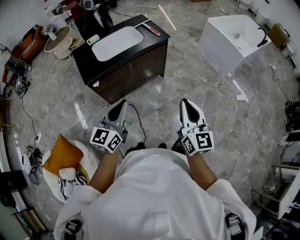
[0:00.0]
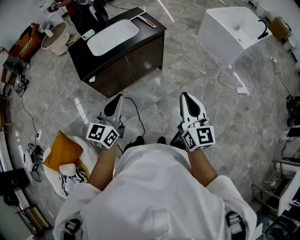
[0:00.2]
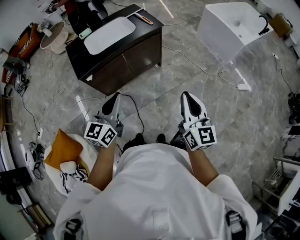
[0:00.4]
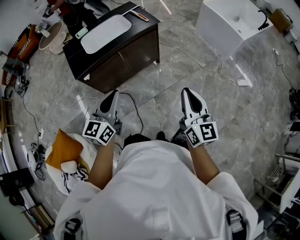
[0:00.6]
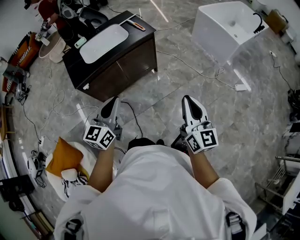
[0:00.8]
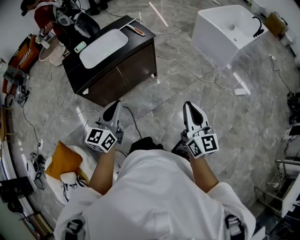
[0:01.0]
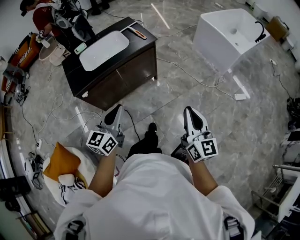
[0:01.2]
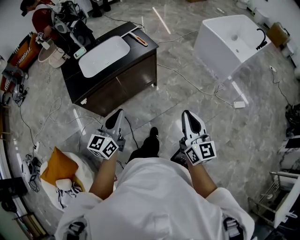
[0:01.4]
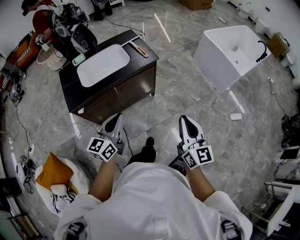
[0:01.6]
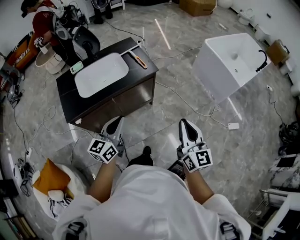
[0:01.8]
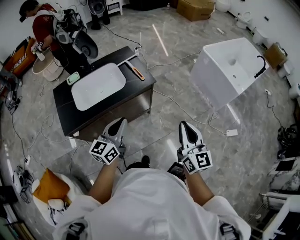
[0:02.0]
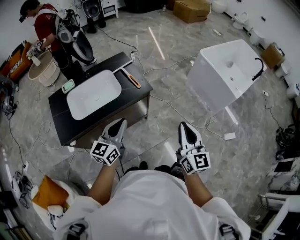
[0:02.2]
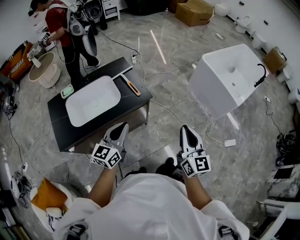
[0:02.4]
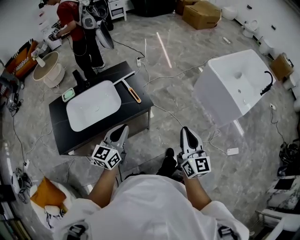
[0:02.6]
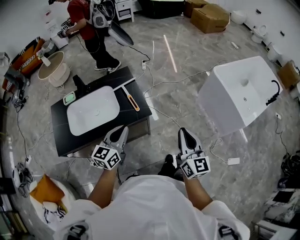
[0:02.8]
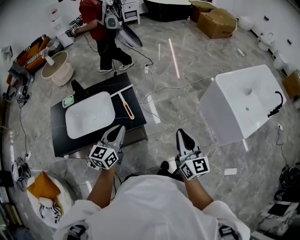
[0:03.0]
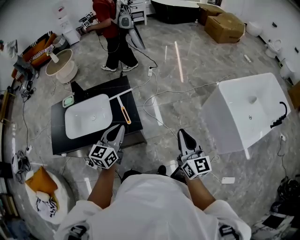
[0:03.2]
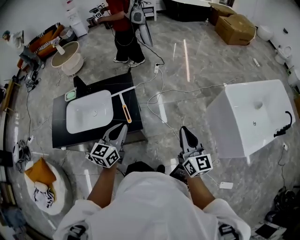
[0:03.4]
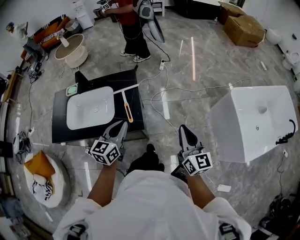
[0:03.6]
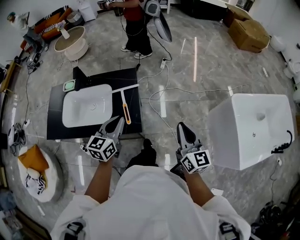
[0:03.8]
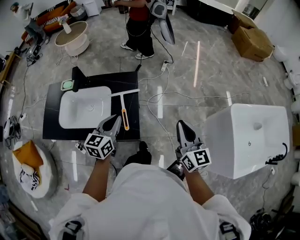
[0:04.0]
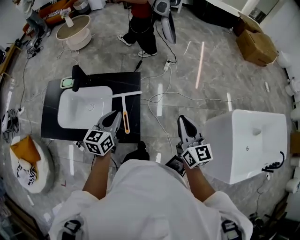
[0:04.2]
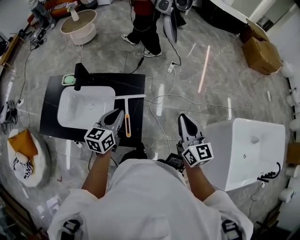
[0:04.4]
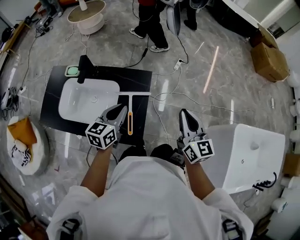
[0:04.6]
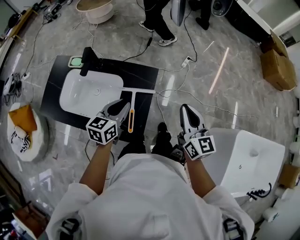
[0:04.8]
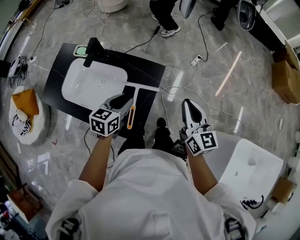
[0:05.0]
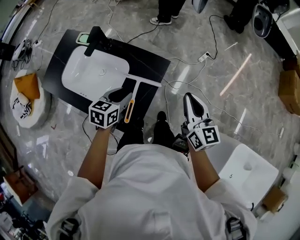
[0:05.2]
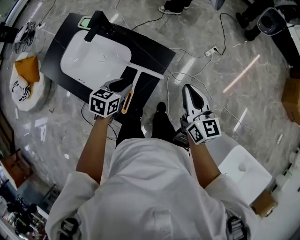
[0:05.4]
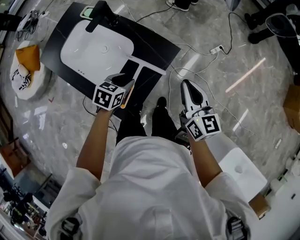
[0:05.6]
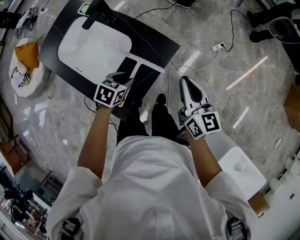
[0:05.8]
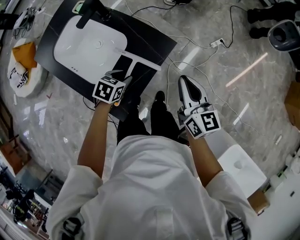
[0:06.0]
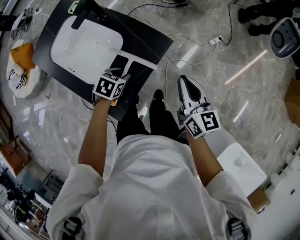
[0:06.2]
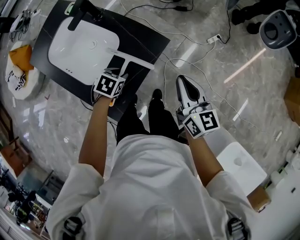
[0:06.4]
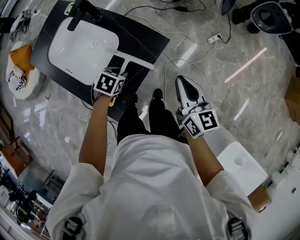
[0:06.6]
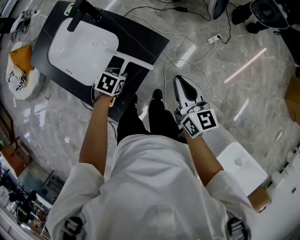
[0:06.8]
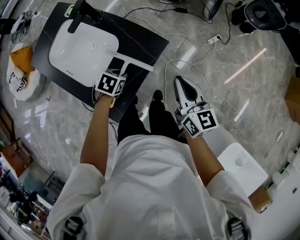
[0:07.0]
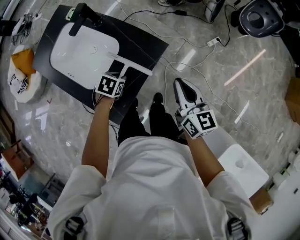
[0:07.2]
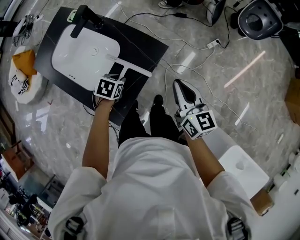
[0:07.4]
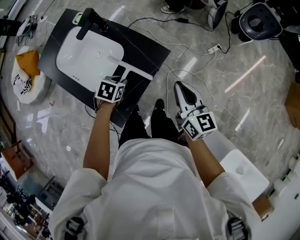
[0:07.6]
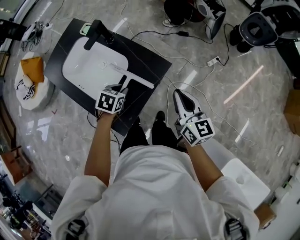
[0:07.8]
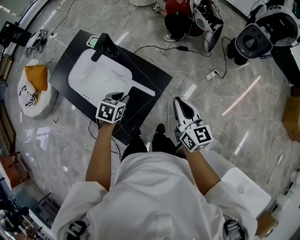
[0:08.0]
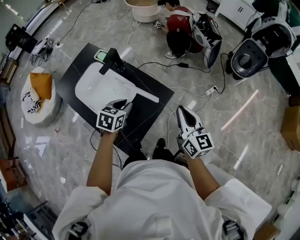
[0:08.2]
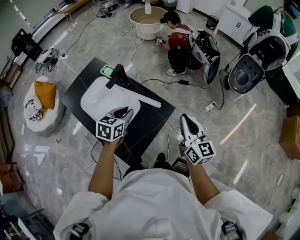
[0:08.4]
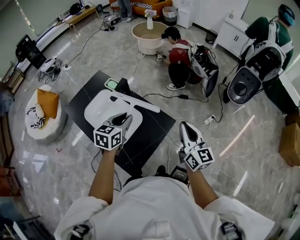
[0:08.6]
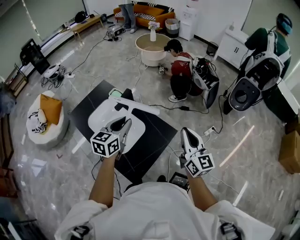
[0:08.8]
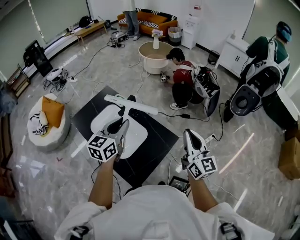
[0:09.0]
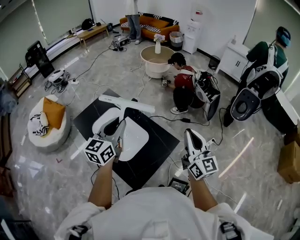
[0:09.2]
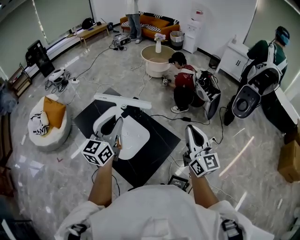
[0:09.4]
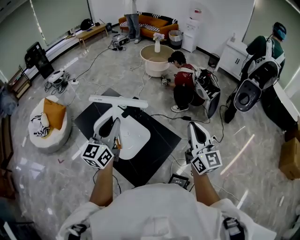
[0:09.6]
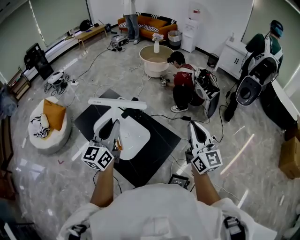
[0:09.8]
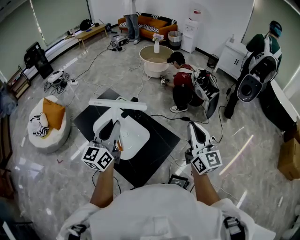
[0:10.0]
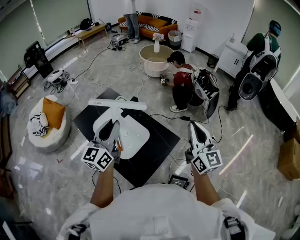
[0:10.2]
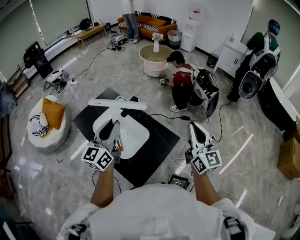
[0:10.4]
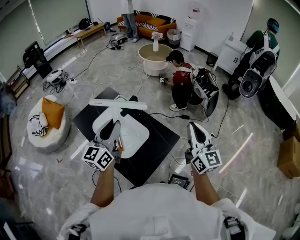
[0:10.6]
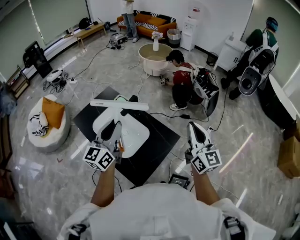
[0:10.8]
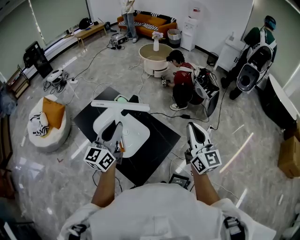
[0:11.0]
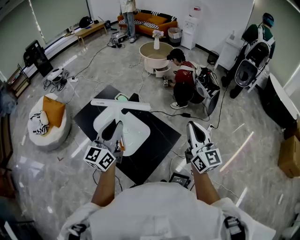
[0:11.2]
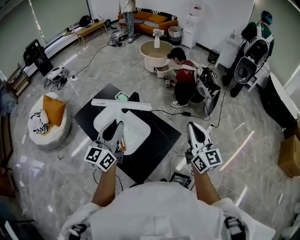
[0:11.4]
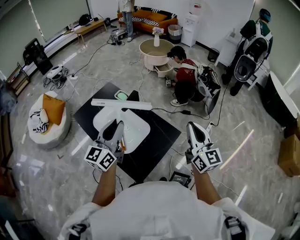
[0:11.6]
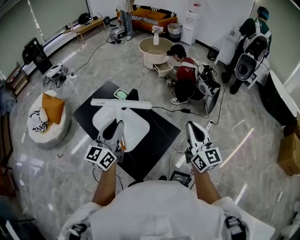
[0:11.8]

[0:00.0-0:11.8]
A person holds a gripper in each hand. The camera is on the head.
0:00.0 to 0:01.4: The grippers both shift forward and to the right by roughly 15 cm.
0:01.4 to 0:03.0: The pair of grippers is taken forward, some 50 cm.
0:03.0 to 0:04.4: Both grippers travel together forward, roughly 30 cm. The right gripper turns by approximately 30 degrees. Meanwhile the left gripper turns by about 20 degrees.
0:04.4 to 0:06.0: The right gripper shifts approximately 25 cm forward and downward, and turns by about 40 degrees, while the left gripper moves downward, approximately 20 cm, points its fingers about 40 degrees further downward, and opens.
0:06.0 to 0:07.4: The grippers stay close to where they were, moving slightly.
0:07.4 to 0:08.8: The left gripper heads upward, covering roughly 30 cm, and tilts its fingers approximately 50 degrees upward, while the right gripper moves upward, some 20 cm, and swivels some 20 degrees.
0:08.8 to 0:10.4: The right gripper travels upward by approximately 10 cm. The left gripper travels upward and to the left by approximately 15 cm, and rotates approximately 30 degrees.
0:10.4 to 0:11.8: The grippers stay close to where they were, moving slightly.

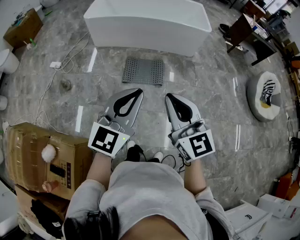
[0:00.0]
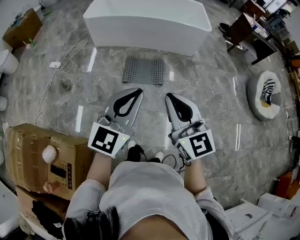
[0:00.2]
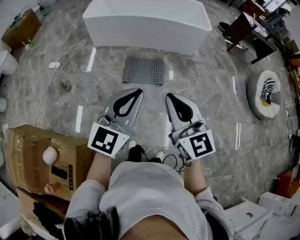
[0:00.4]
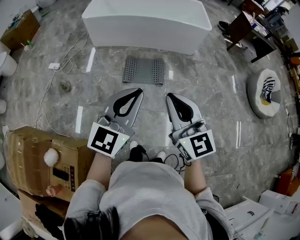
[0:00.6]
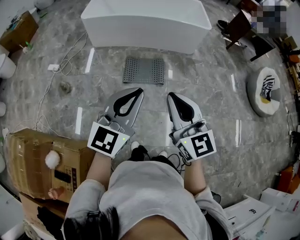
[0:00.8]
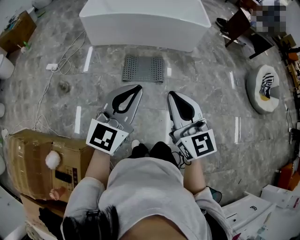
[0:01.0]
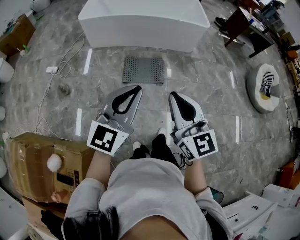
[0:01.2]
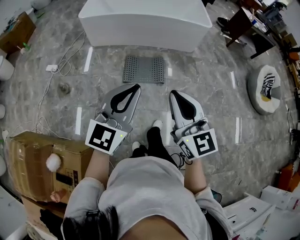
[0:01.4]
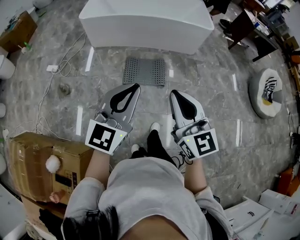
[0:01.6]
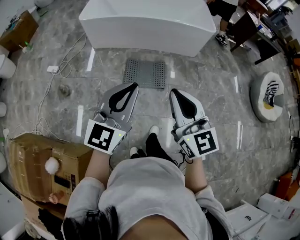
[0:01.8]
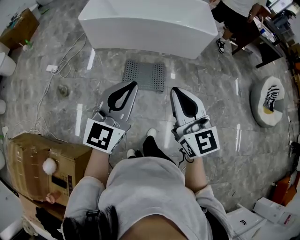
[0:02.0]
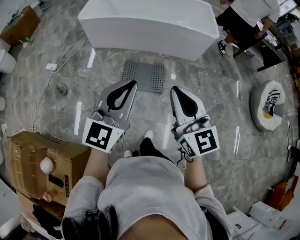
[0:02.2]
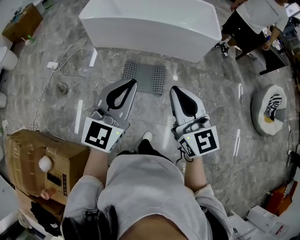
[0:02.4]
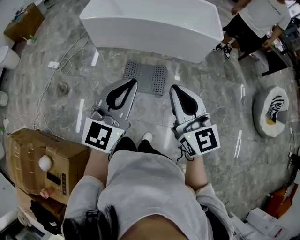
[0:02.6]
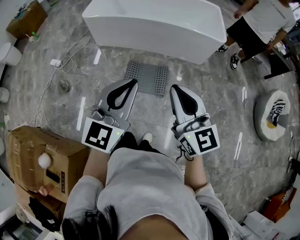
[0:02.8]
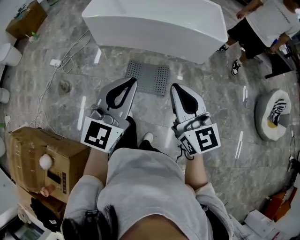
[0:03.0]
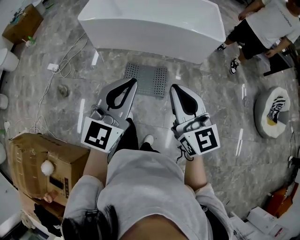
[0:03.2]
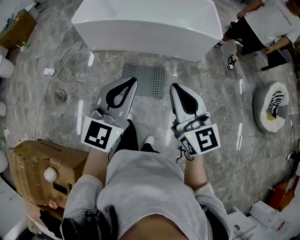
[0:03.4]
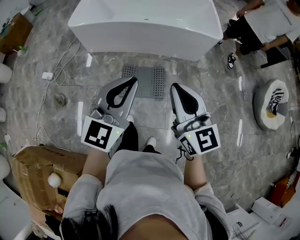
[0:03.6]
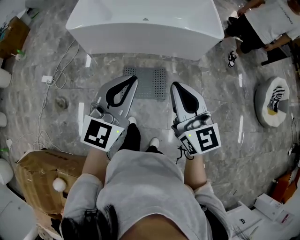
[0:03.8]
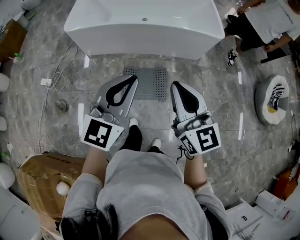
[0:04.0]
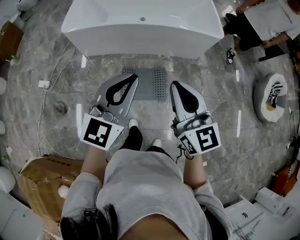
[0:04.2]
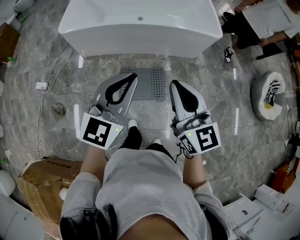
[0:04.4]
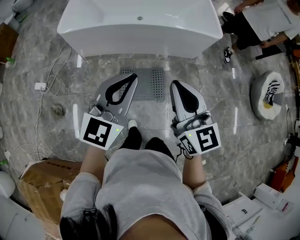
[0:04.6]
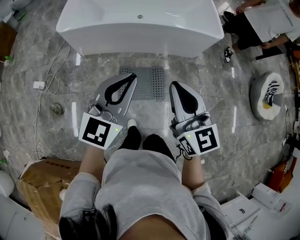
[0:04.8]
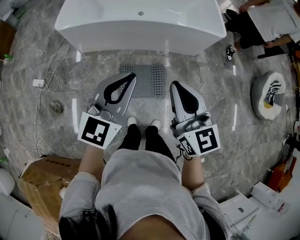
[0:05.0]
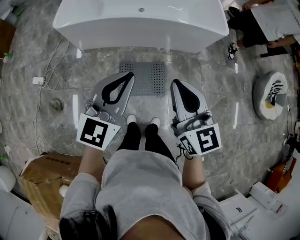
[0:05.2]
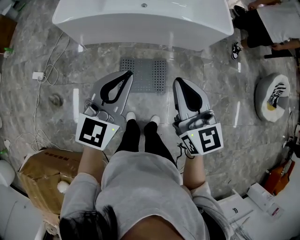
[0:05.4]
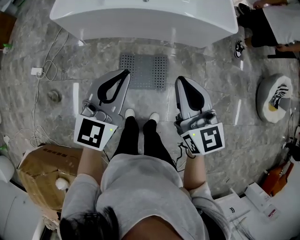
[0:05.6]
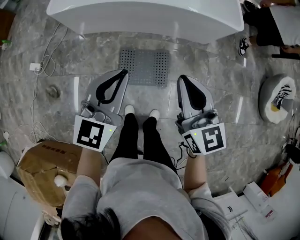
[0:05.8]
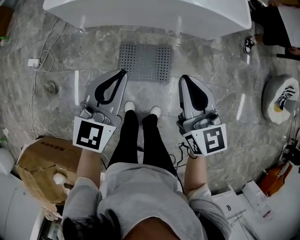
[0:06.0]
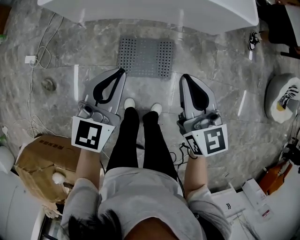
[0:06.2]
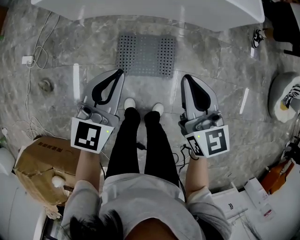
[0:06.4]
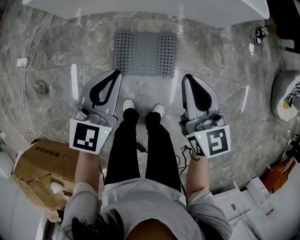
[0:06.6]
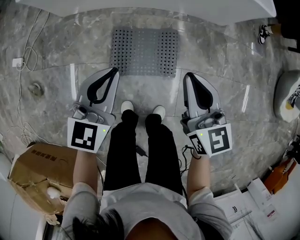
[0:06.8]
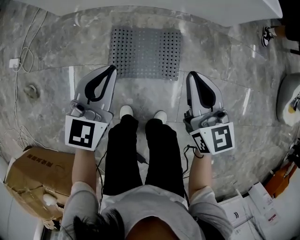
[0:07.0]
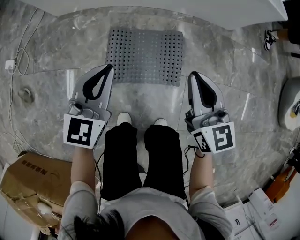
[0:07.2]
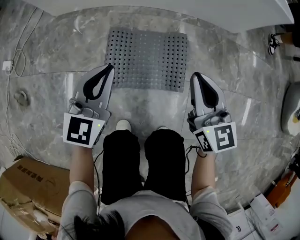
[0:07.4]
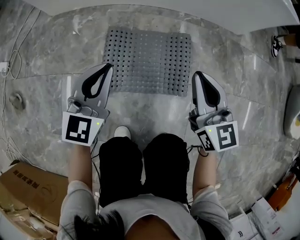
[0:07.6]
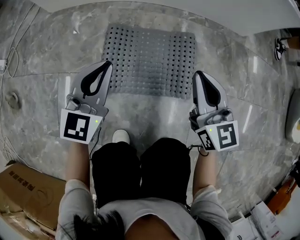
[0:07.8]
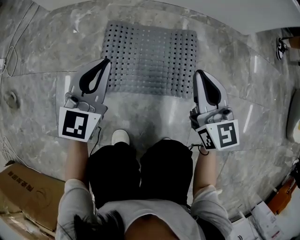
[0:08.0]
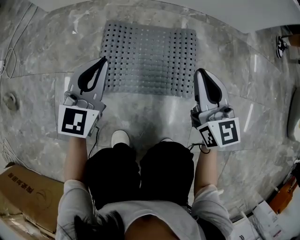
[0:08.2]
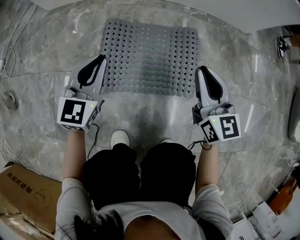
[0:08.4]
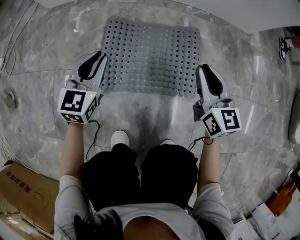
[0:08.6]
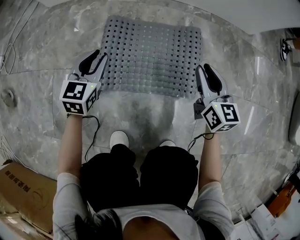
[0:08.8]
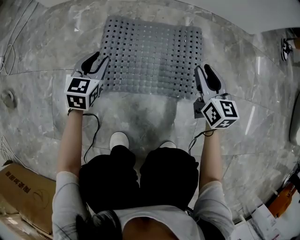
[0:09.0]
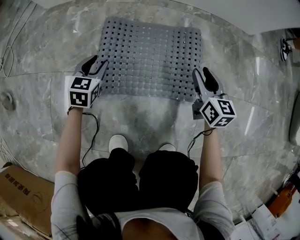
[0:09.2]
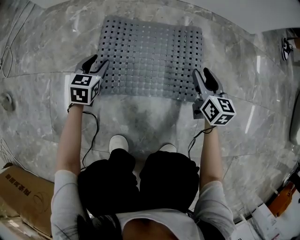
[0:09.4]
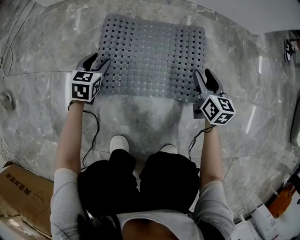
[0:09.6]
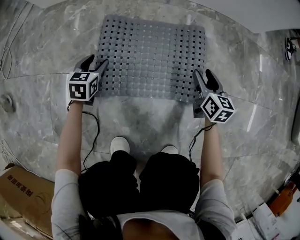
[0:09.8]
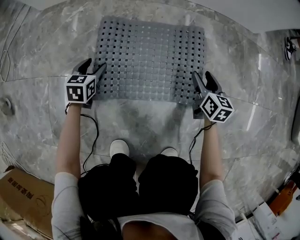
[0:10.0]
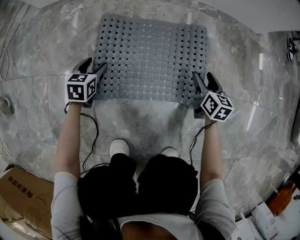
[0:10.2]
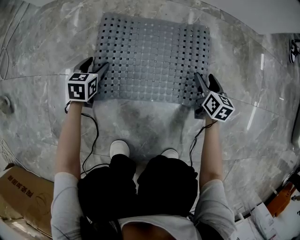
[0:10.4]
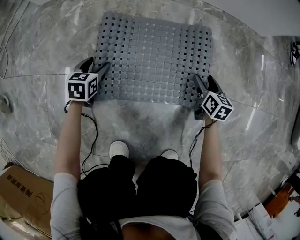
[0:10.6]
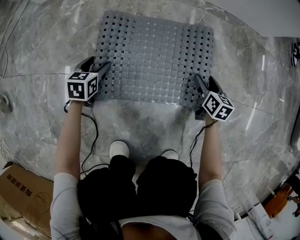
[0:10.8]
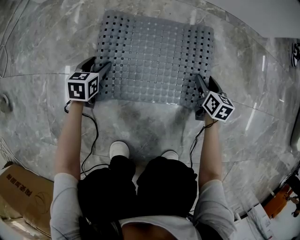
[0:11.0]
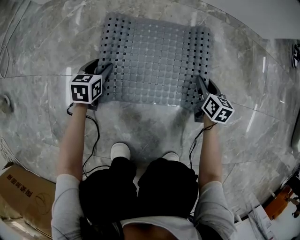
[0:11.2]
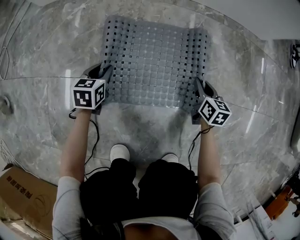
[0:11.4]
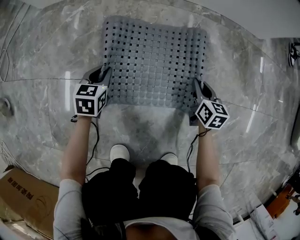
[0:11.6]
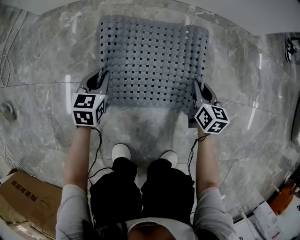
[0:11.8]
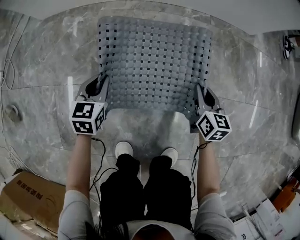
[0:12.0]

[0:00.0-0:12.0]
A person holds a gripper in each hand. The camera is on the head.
0:00.0 to 0:01.6: The right gripper is displaced forward by about 10 cm, while the left gripper goes about 10 cm forward and to the left.
0:01.6 to 0:03.0: The grippers both shift forward and to the right by approximately 20 cm.
0:03.0 to 0:04.4: Both grippers travel together forward and to the left, some 20 cm.
0:04.4 to 0:06.0: Both grippers travel together downward and forward, approximately 20 cm.
0:06.0 to 0:07.6: Both grippers move downward, approximately 50 cm.
0:07.6 to 0:09.0: The grippers both shift downward by some 20 cm. The left gripper turns by about 20 degrees, and opens its fingers, while the right gripper opens up.
0:09.0 to 0:10.4: Both grippers move downward, some 15 cm. The left gripper opens, while the right gripper rotates roughly 20 degrees, and opens up.
0:10.4 to 0:12.0: Both grippers travel together upward, approximately 15 cm. The right gripper closes up. Meanwhile the left gripper closes.
